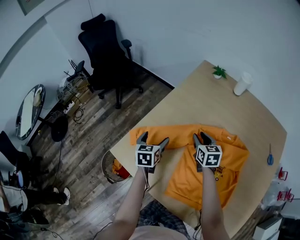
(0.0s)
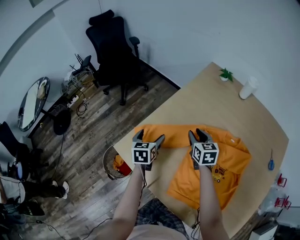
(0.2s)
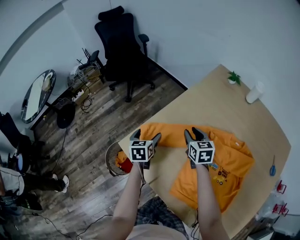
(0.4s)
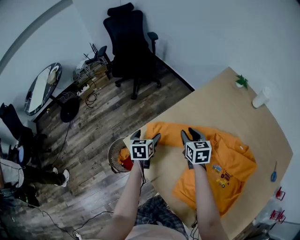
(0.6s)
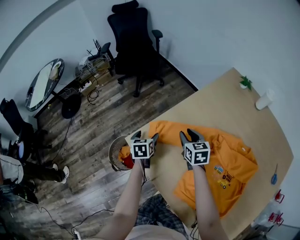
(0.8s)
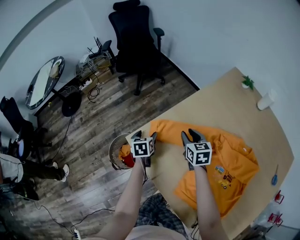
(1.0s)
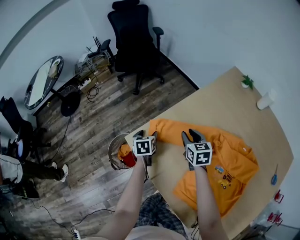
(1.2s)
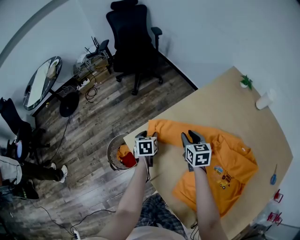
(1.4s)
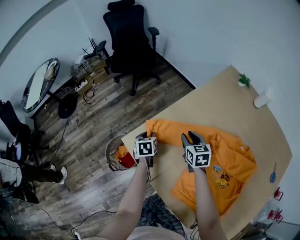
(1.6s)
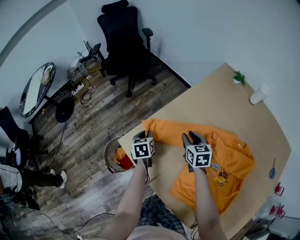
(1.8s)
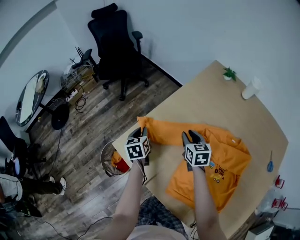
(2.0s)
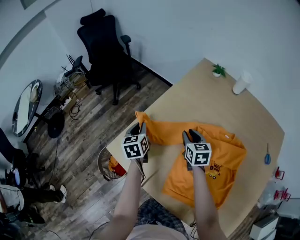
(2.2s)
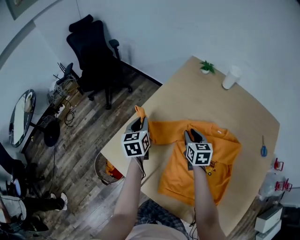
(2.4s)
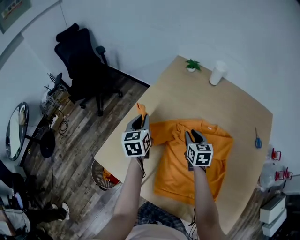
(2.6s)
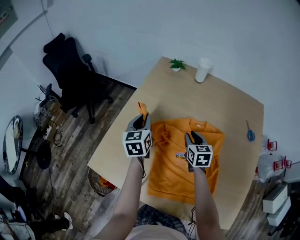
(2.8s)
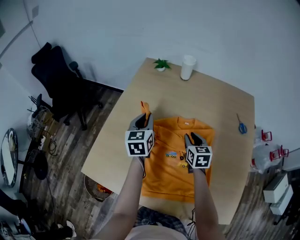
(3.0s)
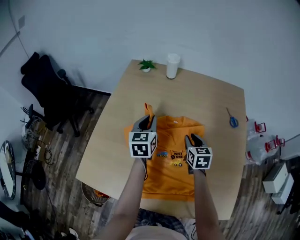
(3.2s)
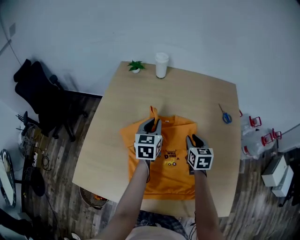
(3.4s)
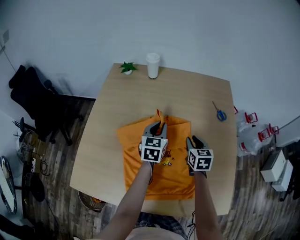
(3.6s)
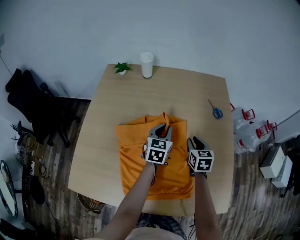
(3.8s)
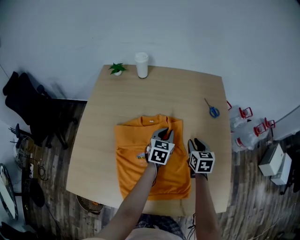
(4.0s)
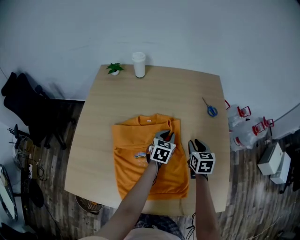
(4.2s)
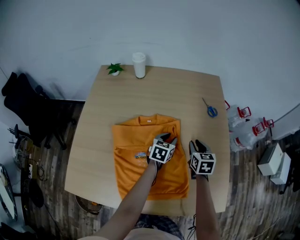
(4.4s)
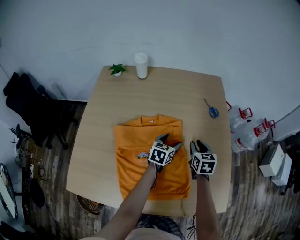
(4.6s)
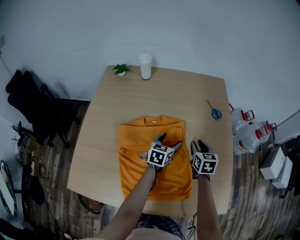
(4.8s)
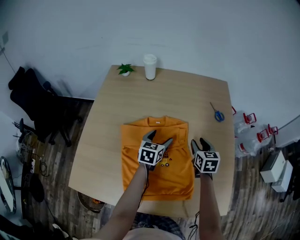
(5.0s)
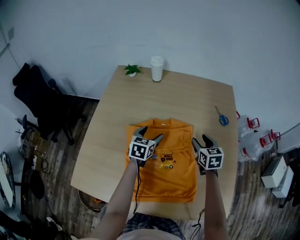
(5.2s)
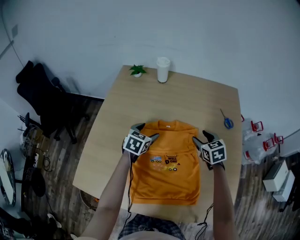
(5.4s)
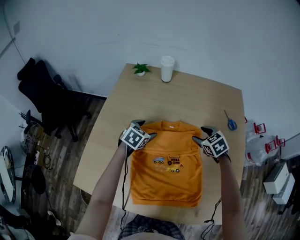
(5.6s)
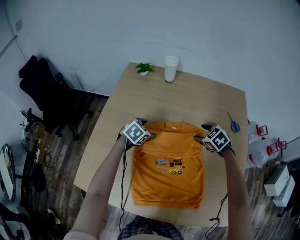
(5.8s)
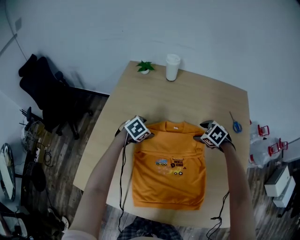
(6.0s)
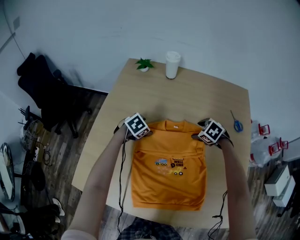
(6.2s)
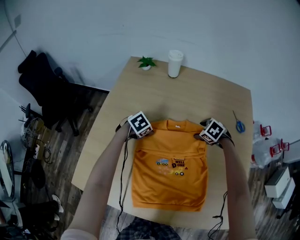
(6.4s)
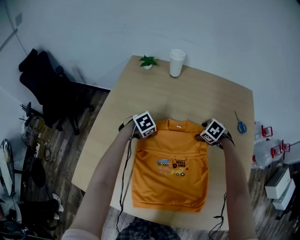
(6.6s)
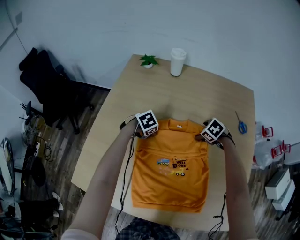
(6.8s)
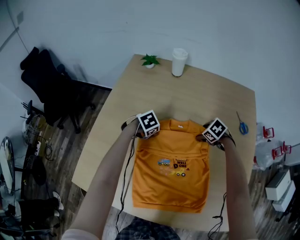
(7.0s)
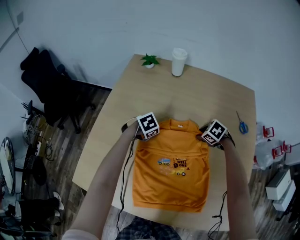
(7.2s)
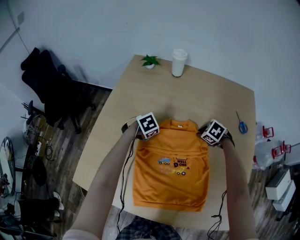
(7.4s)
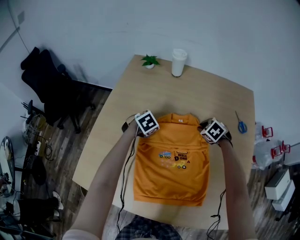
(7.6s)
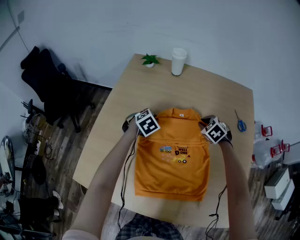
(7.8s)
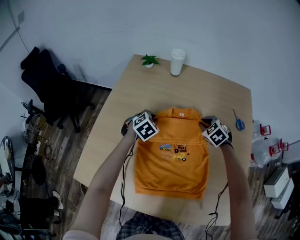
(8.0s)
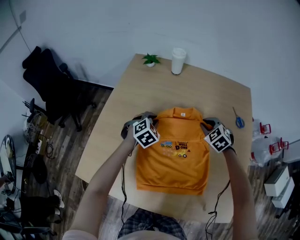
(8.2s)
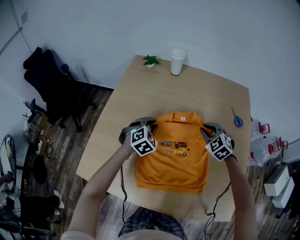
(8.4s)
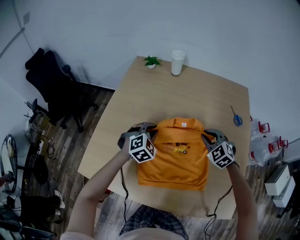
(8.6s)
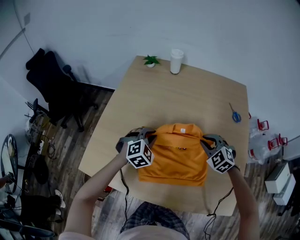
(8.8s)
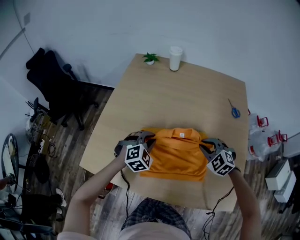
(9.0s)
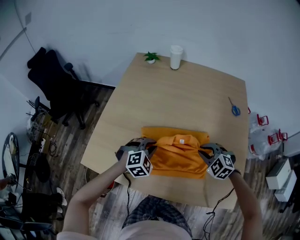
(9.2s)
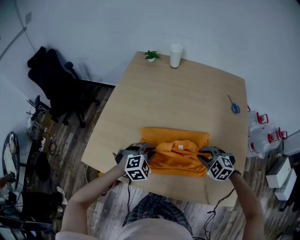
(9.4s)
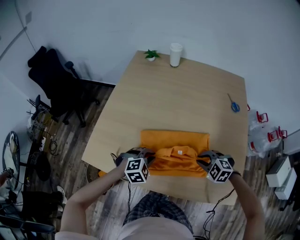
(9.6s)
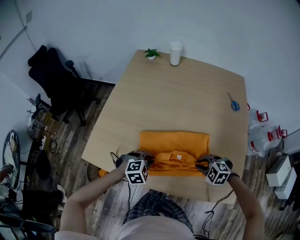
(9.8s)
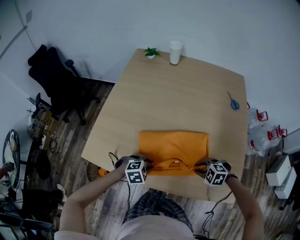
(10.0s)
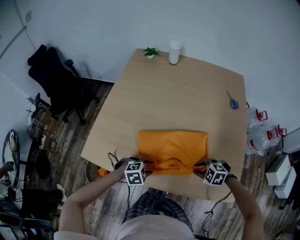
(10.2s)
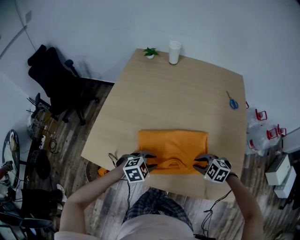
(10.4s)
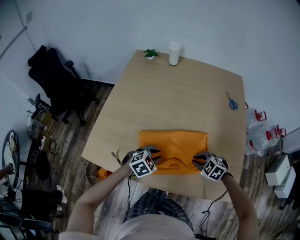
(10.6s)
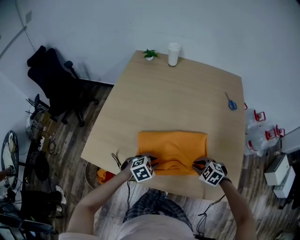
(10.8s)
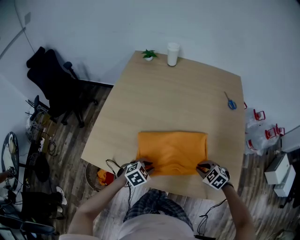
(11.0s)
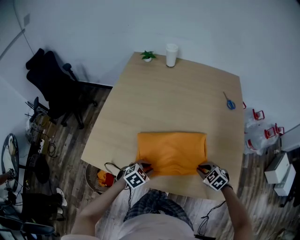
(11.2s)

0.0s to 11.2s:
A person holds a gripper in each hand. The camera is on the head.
0.0s to 1.6s: The left gripper moves to the left and downward, some 15 cm, changes its angle by roughly 30 degrees, and closes. Meanwhile the right gripper heads to the left, covering some 15 cm.
1.6s to 3.2s: The left gripper changes place by roughly 50 cm, and rotates about 50 degrees, while the right gripper changes place by some 40 cm, and changes its angle by some 40 degrees.
3.2s to 4.8s: The right gripper moves some 15 cm, while the left gripper changes place by some 25 cm, changes its angle by approximately 30 degrees, and opens its fingers.
4.8s to 6.4s: The right gripper heads forward, to the left and downward, covering approximately 20 cm, angles its fingers downward, by approximately 30 degrees, and opens, while the left gripper heads to the left, covering roughly 25 cm, and angles its fingers downward, by approximately 40 degrees.
6.4s to 8.0s: Both grippers move upward, about 5 cm. The left gripper turns by about 20 degrees, and closes its fingers. The right gripper closes its fingers.
8.0s to 9.6s: Both grippers move backward, approximately 30 cm. The left gripper changes its angle by roughly 20 degrees. Meanwhile the right gripper turns by about 30 degrees.
9.6s to 11.2s: The right gripper ends up approximately 10 cm from where it was, and swivels approximately 30 degrees; the left gripper swings up and down, roughly 5 cm each way, with 2 reversals, and turns by about 30 degrees.

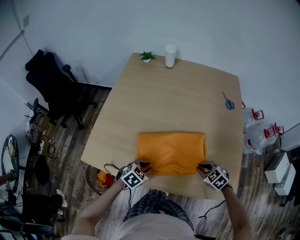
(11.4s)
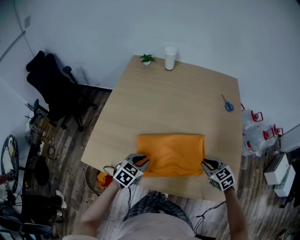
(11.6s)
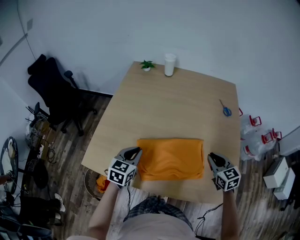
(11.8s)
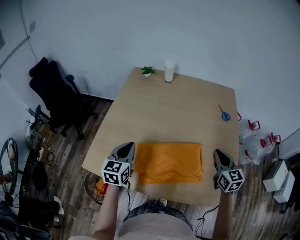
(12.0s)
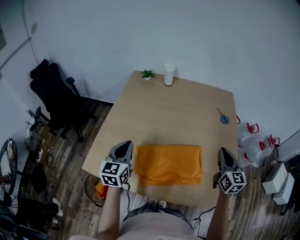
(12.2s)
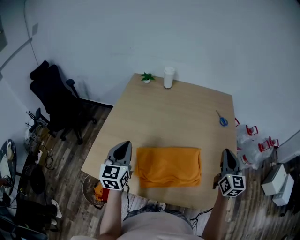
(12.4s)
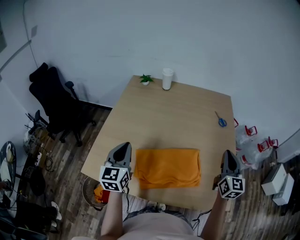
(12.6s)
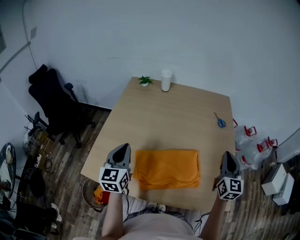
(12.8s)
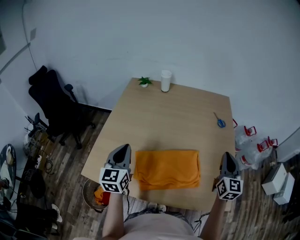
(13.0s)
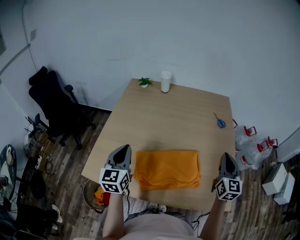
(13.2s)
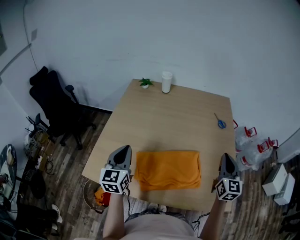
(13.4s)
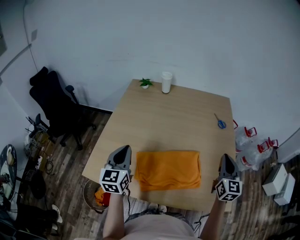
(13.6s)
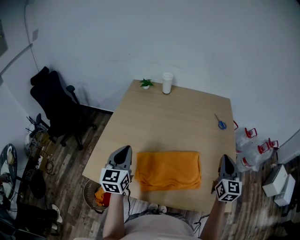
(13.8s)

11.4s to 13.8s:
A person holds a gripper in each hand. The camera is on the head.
11.4s to 12.6s: Both grippers travel together upward, some 25 cm. The left gripper tilts its fingers some 50 degrees upward. Meanwhile the right gripper tilts its fingers roughly 50 degrees upward.
12.6s to 13.8s: The grippers make only small movements.

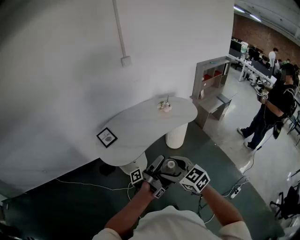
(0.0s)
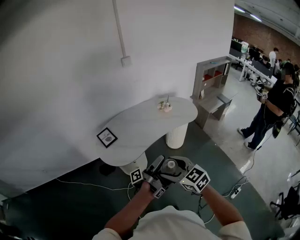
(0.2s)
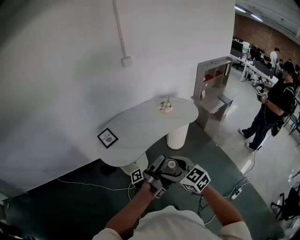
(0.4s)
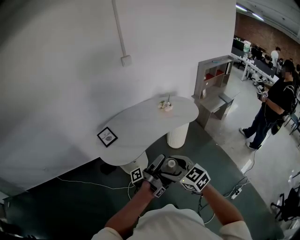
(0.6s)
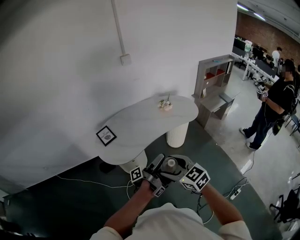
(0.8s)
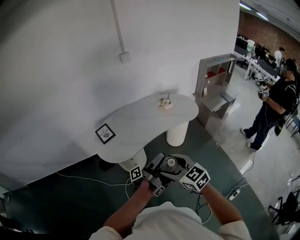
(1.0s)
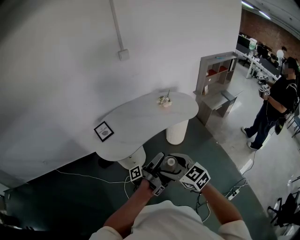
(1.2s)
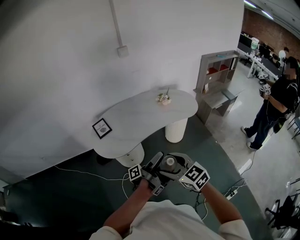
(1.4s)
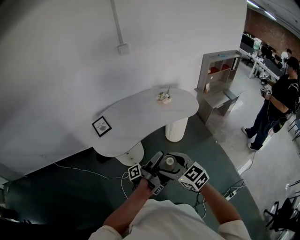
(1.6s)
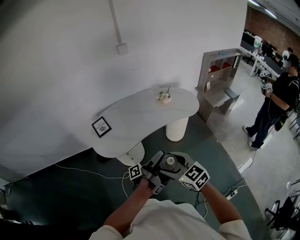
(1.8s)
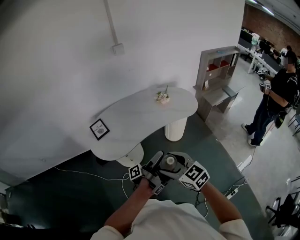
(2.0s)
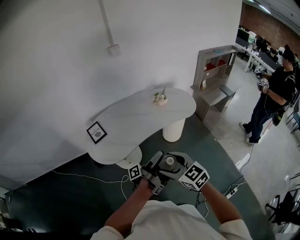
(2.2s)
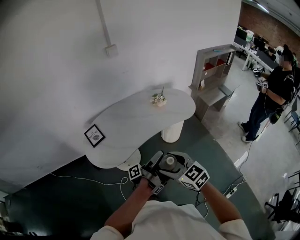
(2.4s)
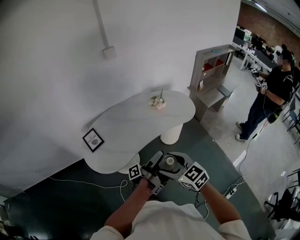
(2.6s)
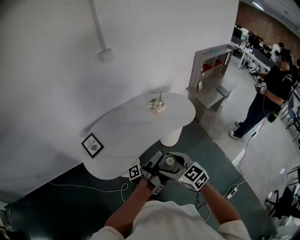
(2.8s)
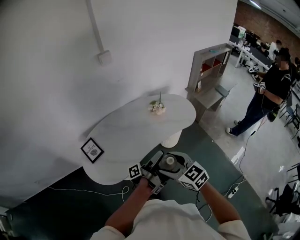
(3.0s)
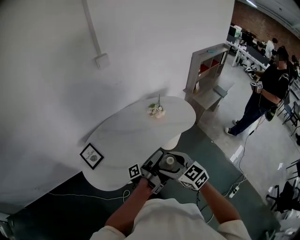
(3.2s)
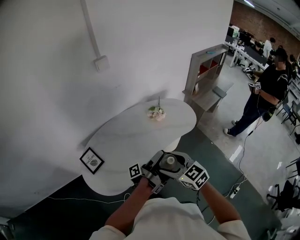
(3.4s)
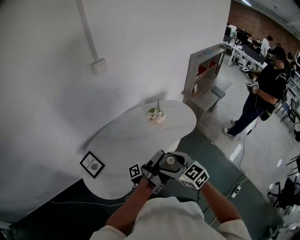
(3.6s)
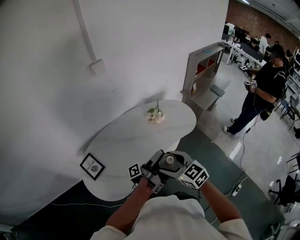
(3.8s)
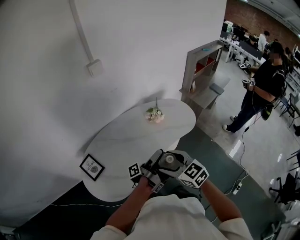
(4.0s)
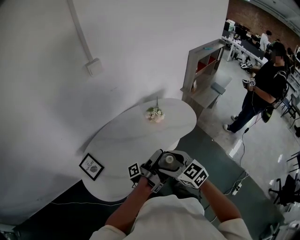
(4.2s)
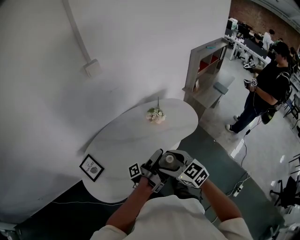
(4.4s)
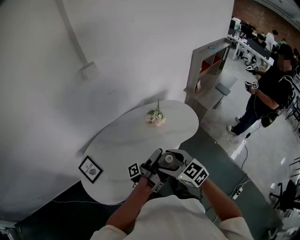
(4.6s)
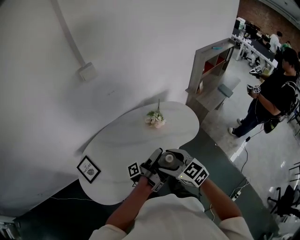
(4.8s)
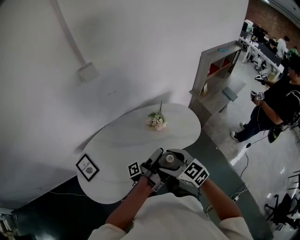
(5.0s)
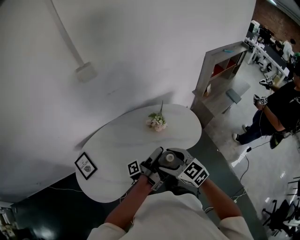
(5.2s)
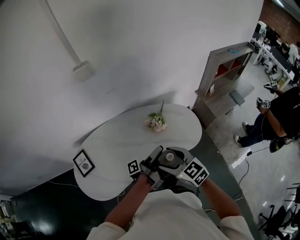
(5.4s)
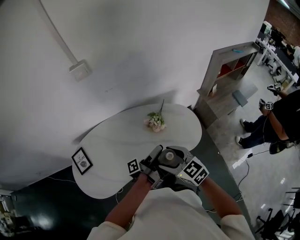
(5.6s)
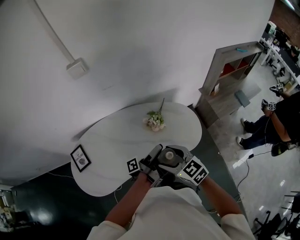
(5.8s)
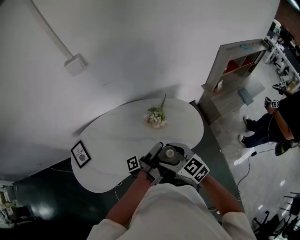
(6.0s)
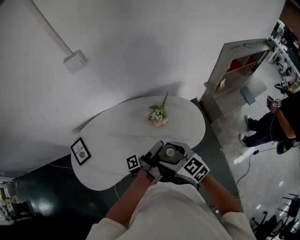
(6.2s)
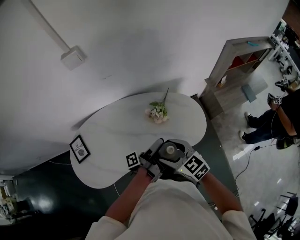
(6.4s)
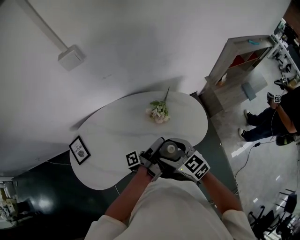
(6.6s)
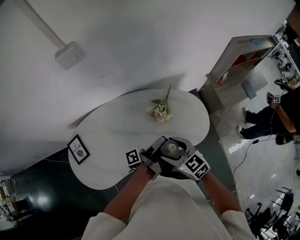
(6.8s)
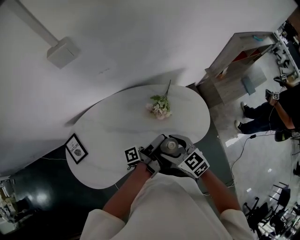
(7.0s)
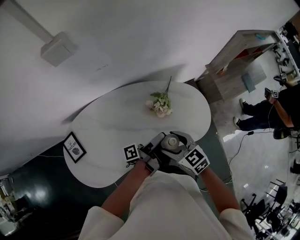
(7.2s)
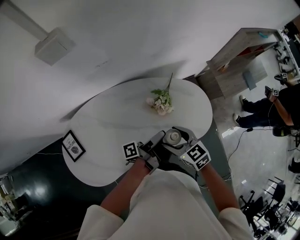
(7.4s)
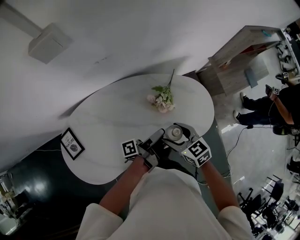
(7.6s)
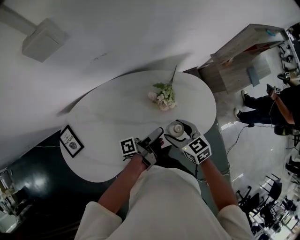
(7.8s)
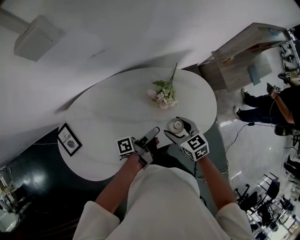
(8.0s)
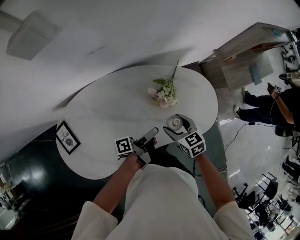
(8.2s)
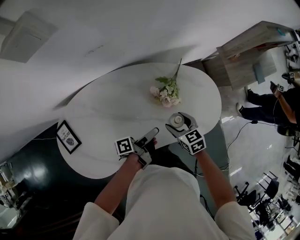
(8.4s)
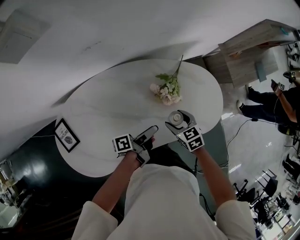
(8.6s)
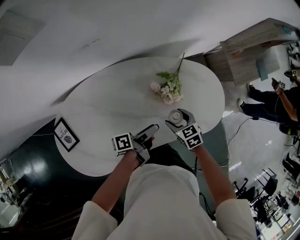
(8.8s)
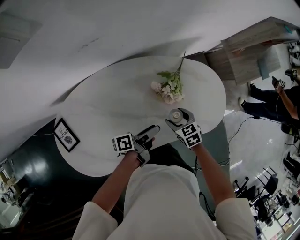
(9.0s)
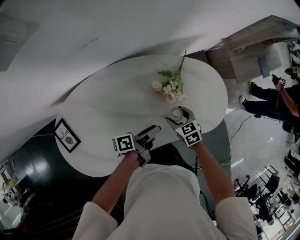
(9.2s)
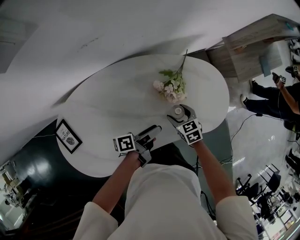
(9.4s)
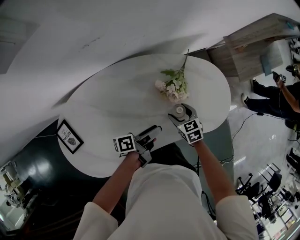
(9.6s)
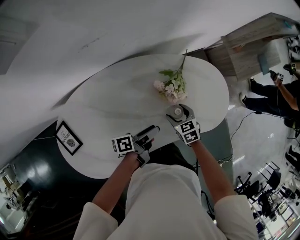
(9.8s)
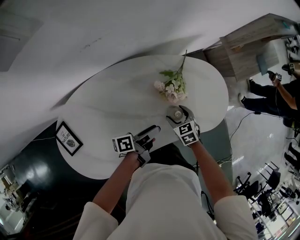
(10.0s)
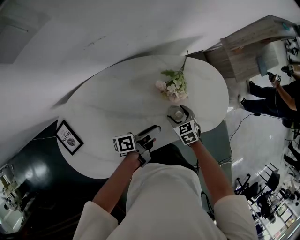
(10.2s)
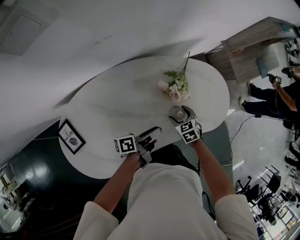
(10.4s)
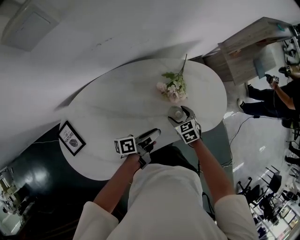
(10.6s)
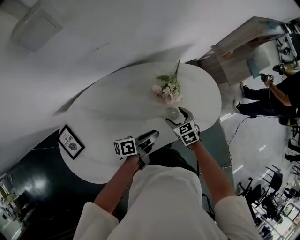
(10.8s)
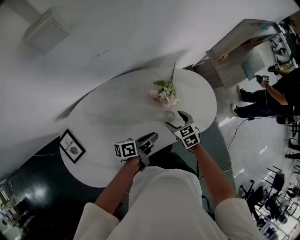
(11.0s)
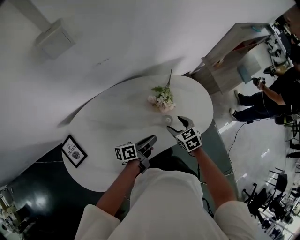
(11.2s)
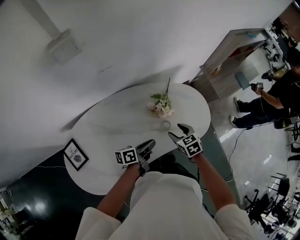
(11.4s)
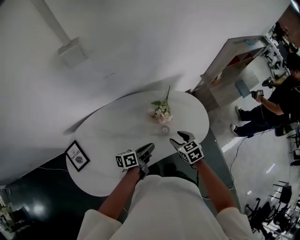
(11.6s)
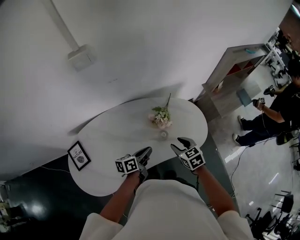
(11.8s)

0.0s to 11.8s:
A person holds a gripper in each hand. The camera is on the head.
0.0s to 1.4s: The right gripper moves some 10 cm.
1.4s to 3.0s: The right gripper ends up approximately 20 cm from where it was.
3.0s to 4.4s: The right gripper moves about 15 cm.
4.4s to 6.0s: The right gripper shifts by roughly 25 cm.
6.0s to 7.4s: The right gripper changes place by some 15 cm.
7.4s to 8.8s: The right gripper moves downward, approximately 20 cm.
8.8s to 10.4s: The right gripper changes place by approximately 5 cm.
10.4s to 11.8s: The right gripper heads upward, covering roughly 20 cm, and closes its fingers.
